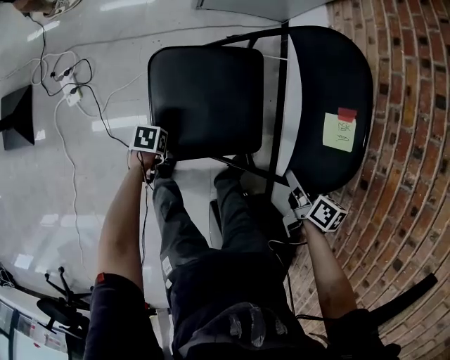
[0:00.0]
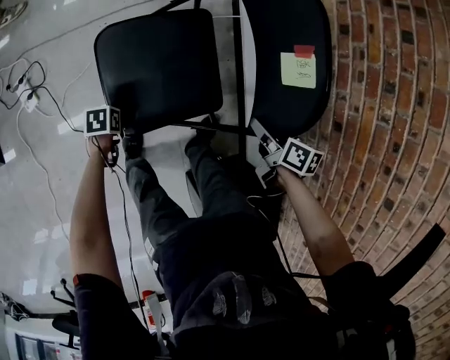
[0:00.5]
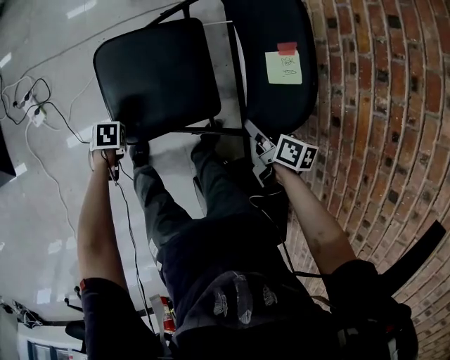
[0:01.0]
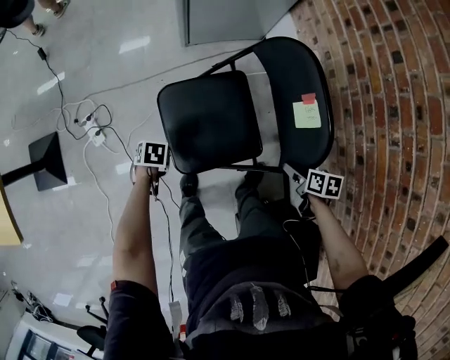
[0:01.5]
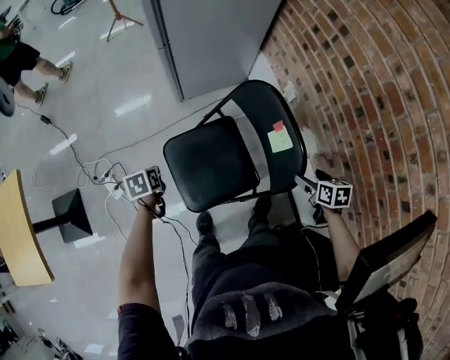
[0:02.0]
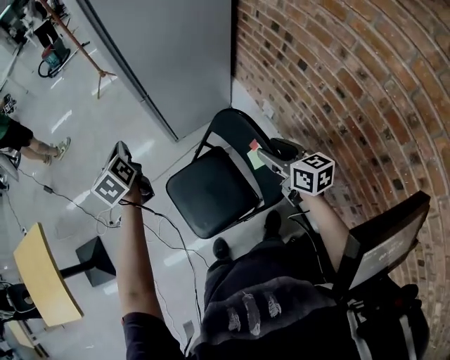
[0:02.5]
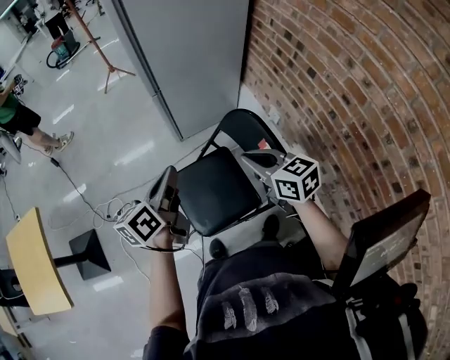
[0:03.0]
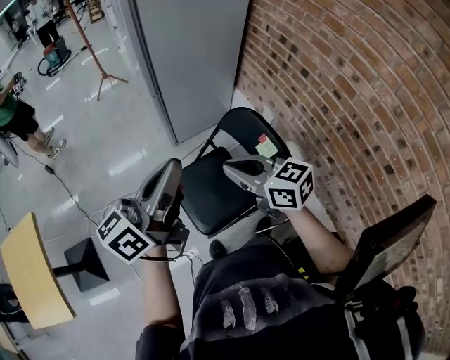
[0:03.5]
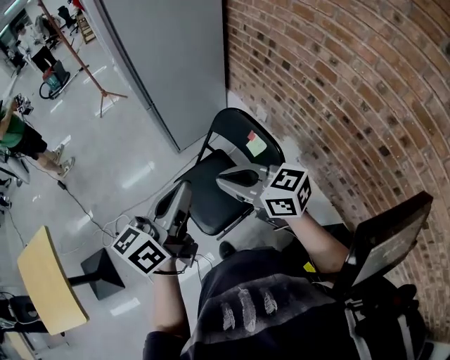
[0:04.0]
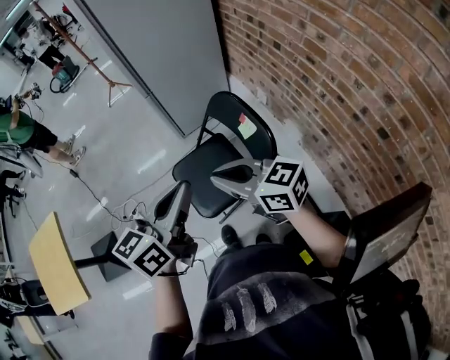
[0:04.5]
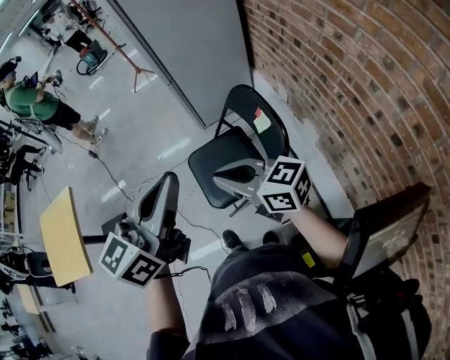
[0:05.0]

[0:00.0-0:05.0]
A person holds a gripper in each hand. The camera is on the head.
0:00.0 to 0:02.5: The right gripper goes about 30 cm upward, changes its angle by roughly 40 degrees, and opens, then closes again; the left gripper goes approximately 60 cm upward, points its fingers roughly 40 degrees further upward, and closes.
0:02.5 to 0:05.0: The right gripper shifts some 30 cm backward, to the left and upward, changes its angle by approximately 40 degrees, and closes its fingers; the left gripper shifts some 50 cm backward and upward, and changes its angle by about 50 degrees.

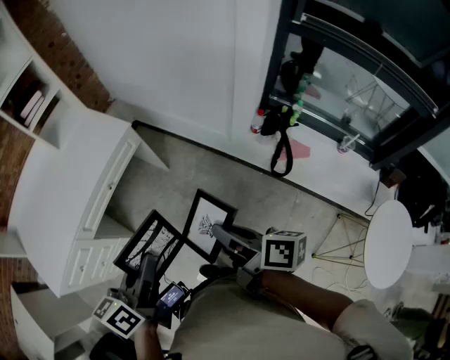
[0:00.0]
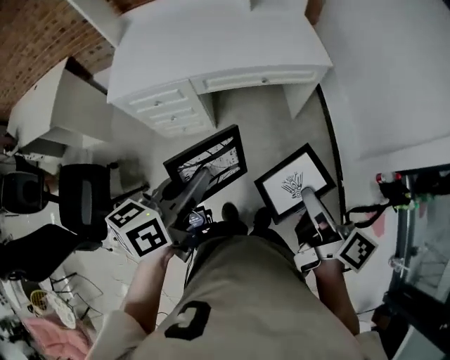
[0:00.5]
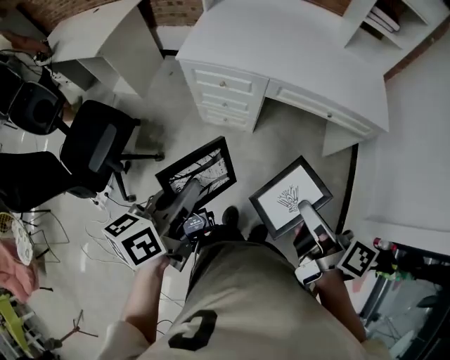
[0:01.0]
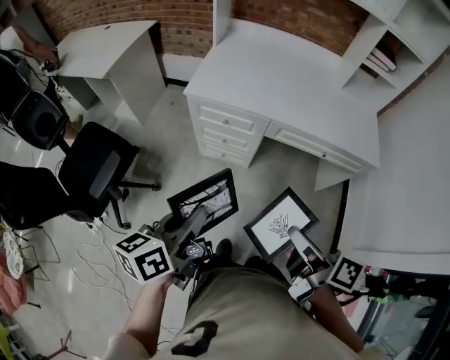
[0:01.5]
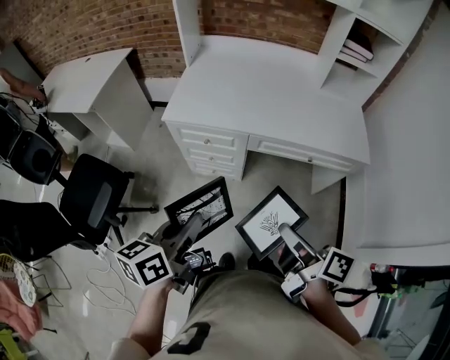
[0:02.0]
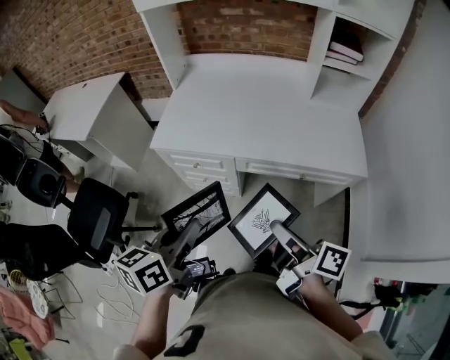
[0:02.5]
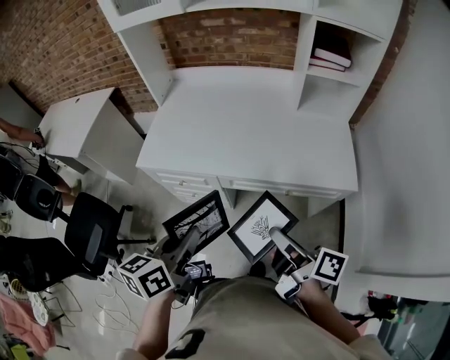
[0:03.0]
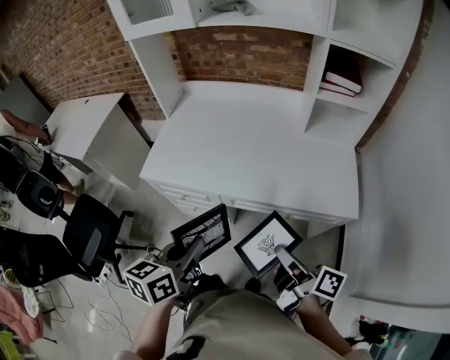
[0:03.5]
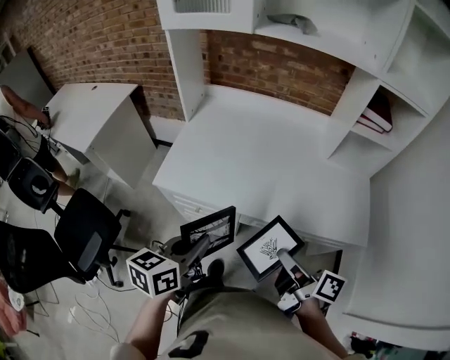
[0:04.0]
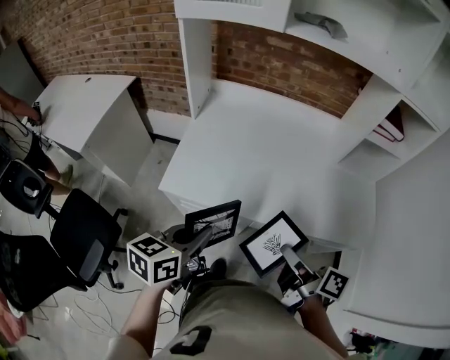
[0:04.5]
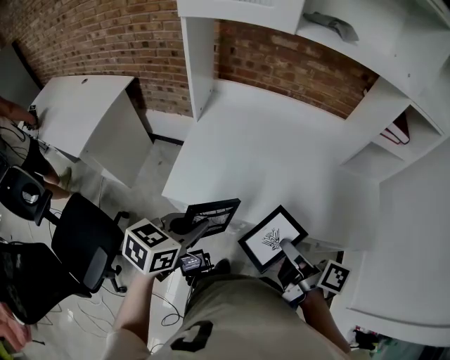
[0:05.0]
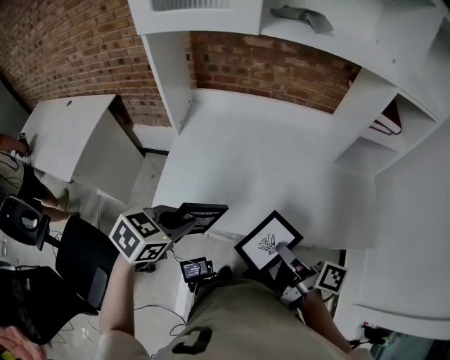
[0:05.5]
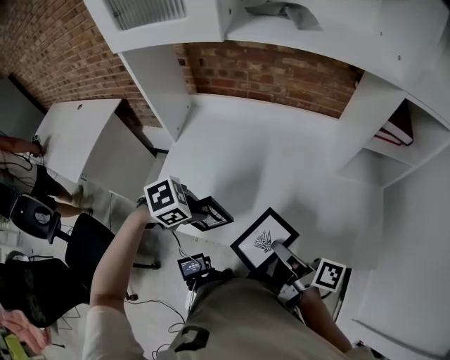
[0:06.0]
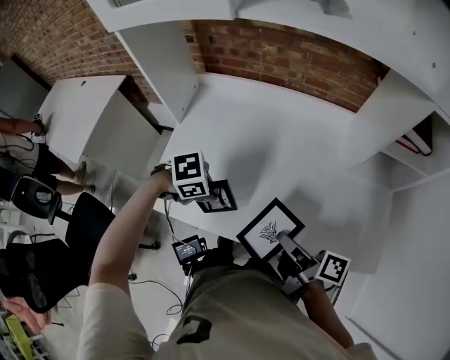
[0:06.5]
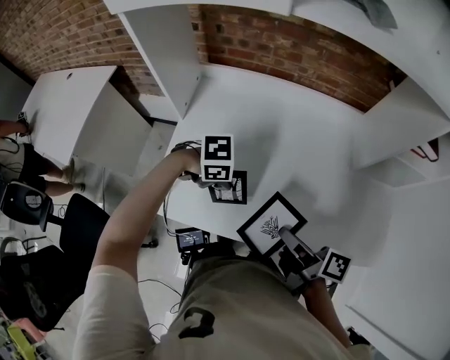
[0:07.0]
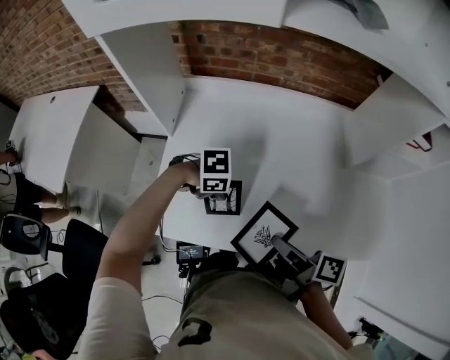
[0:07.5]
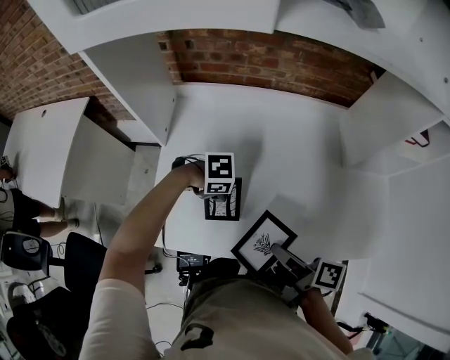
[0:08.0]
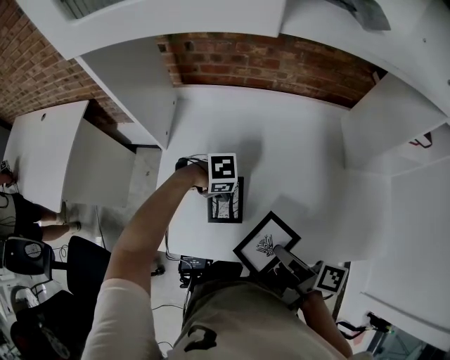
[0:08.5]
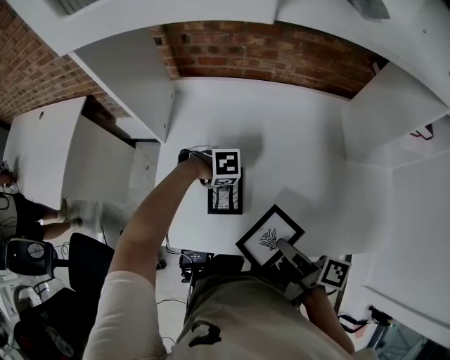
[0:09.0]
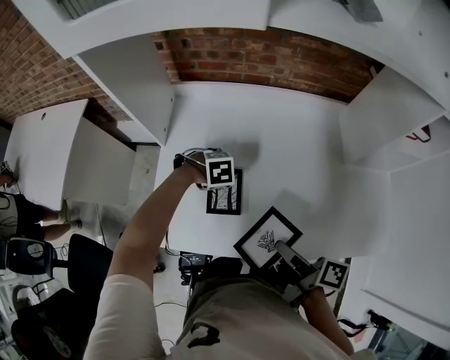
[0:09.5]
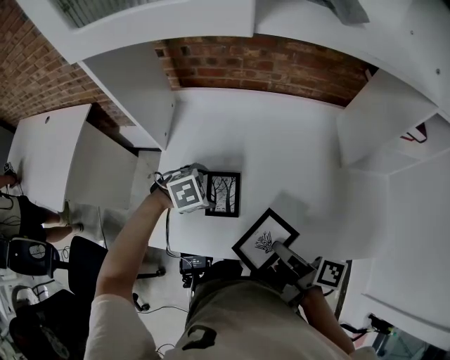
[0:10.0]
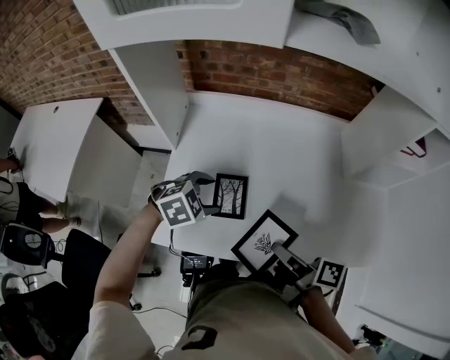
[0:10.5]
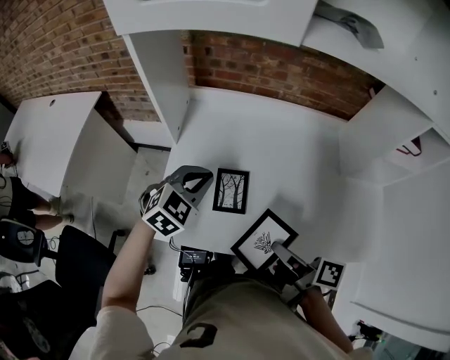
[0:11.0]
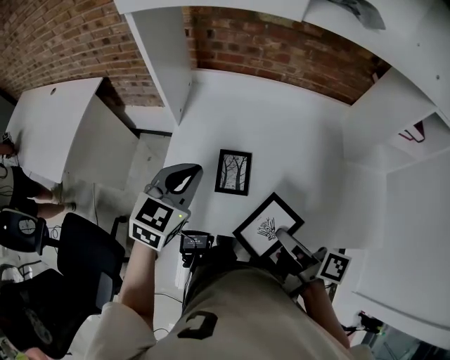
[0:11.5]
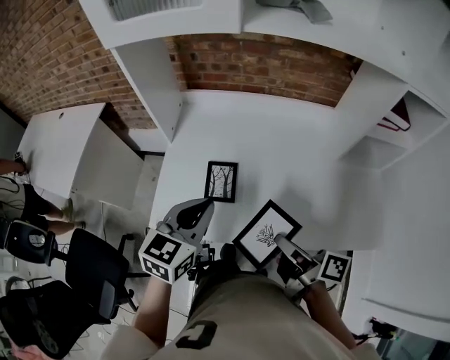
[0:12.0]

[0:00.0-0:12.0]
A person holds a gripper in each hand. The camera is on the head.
0:00.0 to 0:02.0: The left gripper shifts by some 30 cm, and changes its angle by approximately 40 degrees. The right gripper moves some 35 cm, and swivels approximately 40 degrees.
0:02.0 to 0:04.0: Both grippers move forward, roughly 25 cm.
0:04.0 to 0:06.0: The right gripper changes place by approximately 20 cm, while the left gripper changes place by roughly 25 cm, and tilts its fingers approximately 40 degrees downward.
0:06.0 to 0:08.0: The right gripper ends up roughly 10 cm from where it was; the left gripper changes place by approximately 20 cm, swivels about 30 degrees, and opens up.
0:08.0 to 0:10.0: The left gripper rotates some 30 degrees, and opens its fingers.
0:10.0 to 0:12.0: The right gripper shifts by roughly 5 cm. The left gripper heads upward, covering approximately 20 cm, tips its fingers upward by some 50 degrees, and closes up.

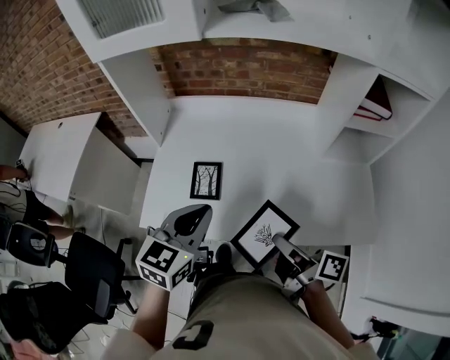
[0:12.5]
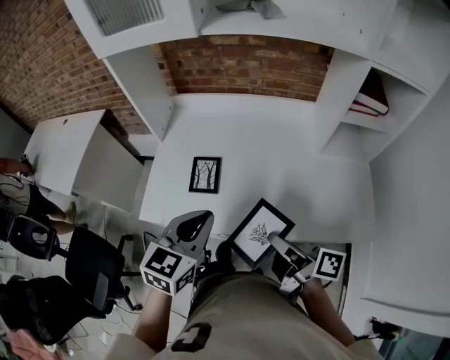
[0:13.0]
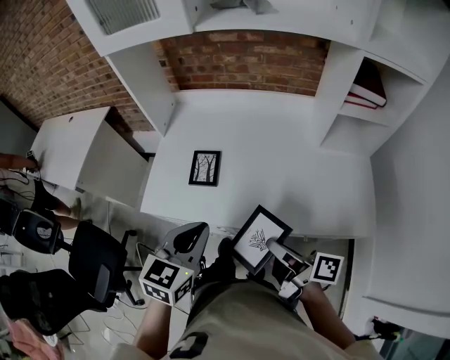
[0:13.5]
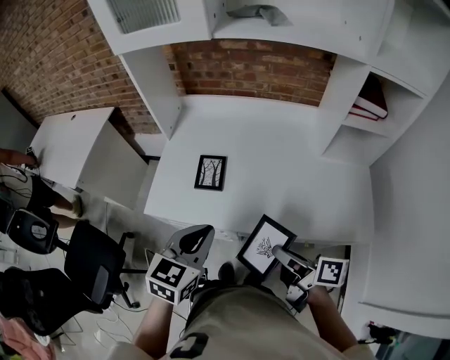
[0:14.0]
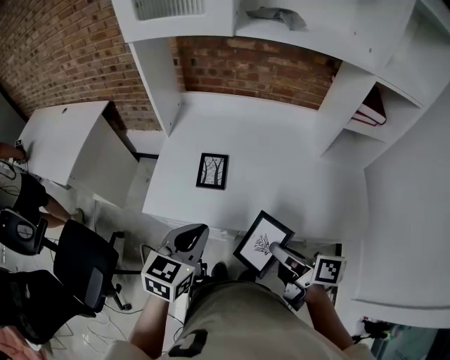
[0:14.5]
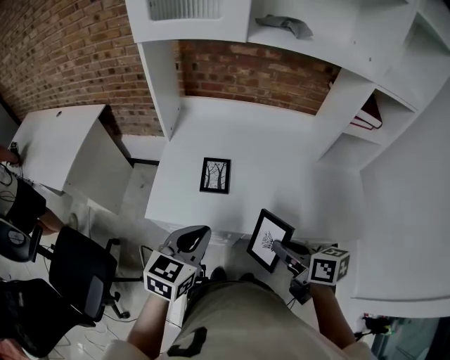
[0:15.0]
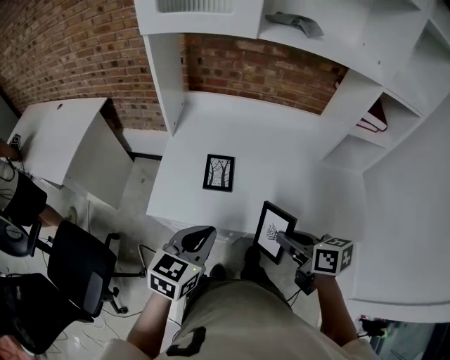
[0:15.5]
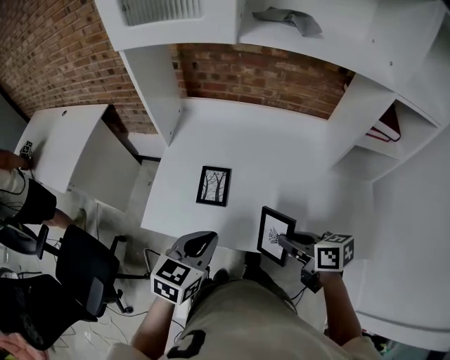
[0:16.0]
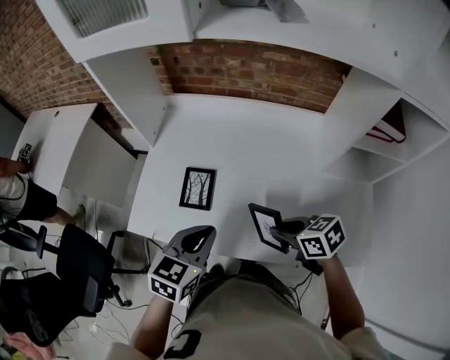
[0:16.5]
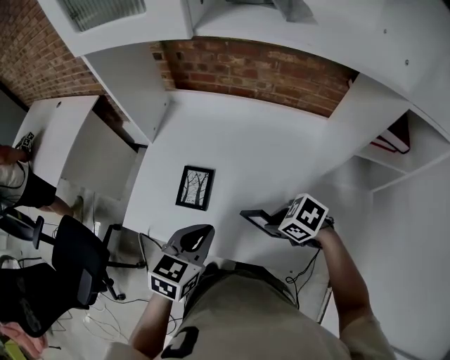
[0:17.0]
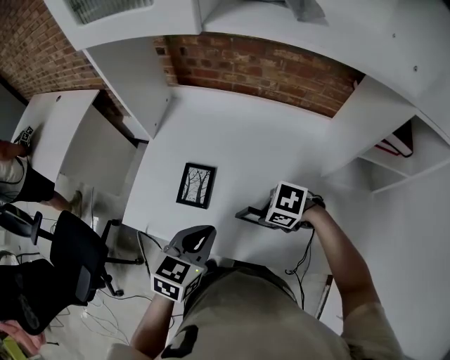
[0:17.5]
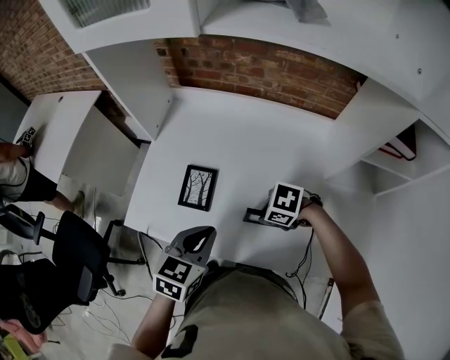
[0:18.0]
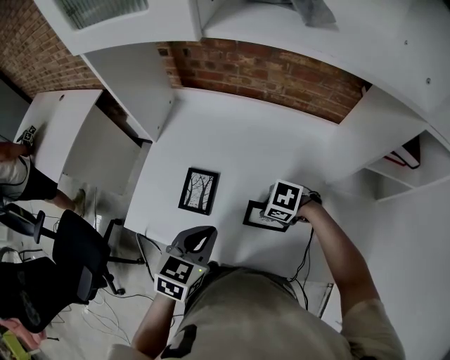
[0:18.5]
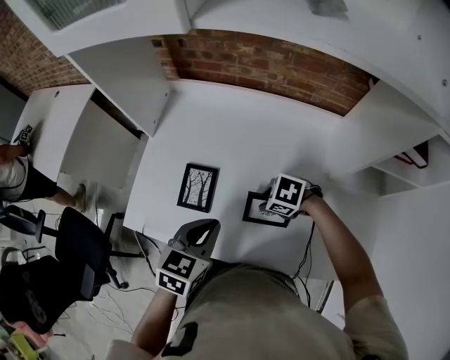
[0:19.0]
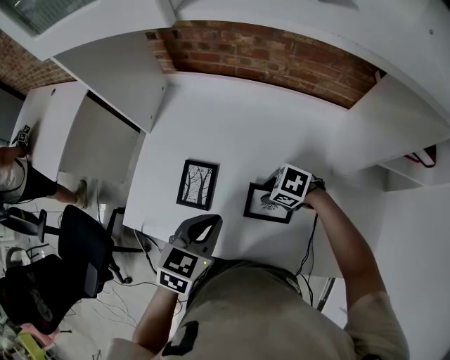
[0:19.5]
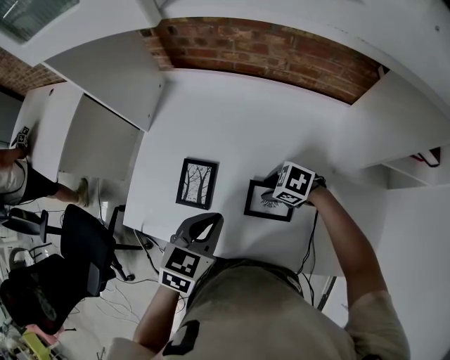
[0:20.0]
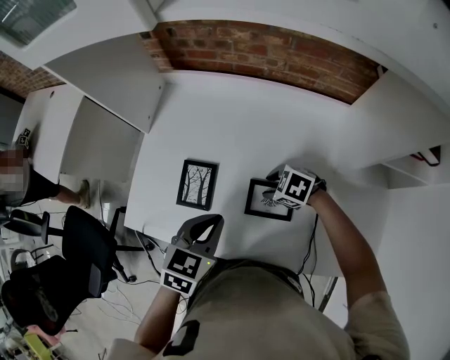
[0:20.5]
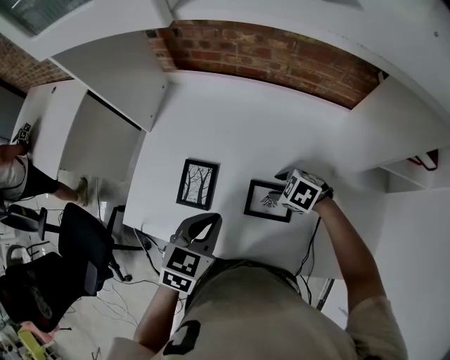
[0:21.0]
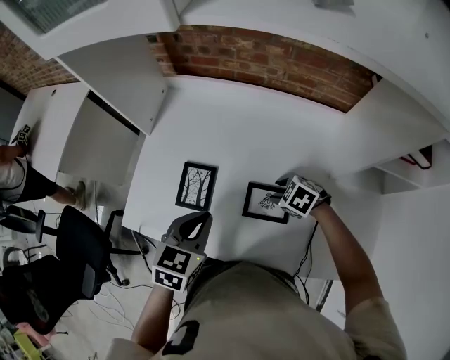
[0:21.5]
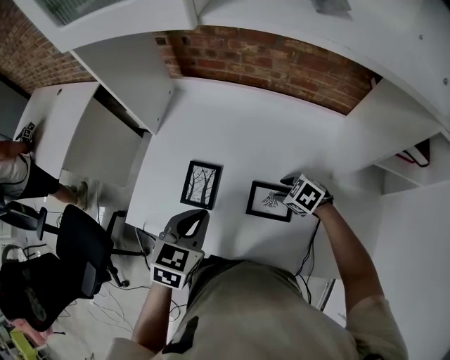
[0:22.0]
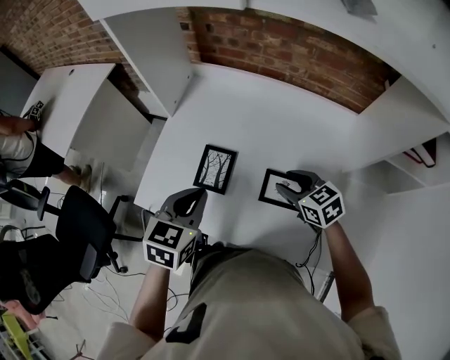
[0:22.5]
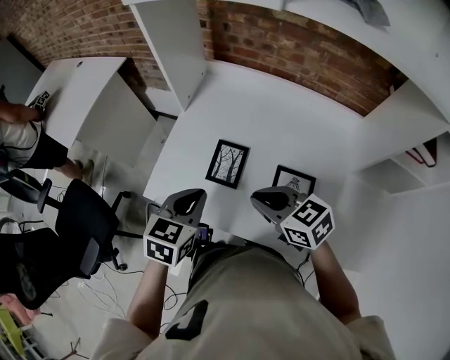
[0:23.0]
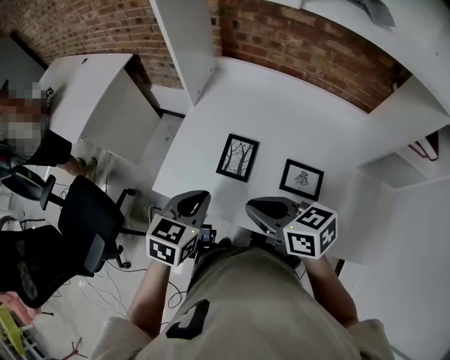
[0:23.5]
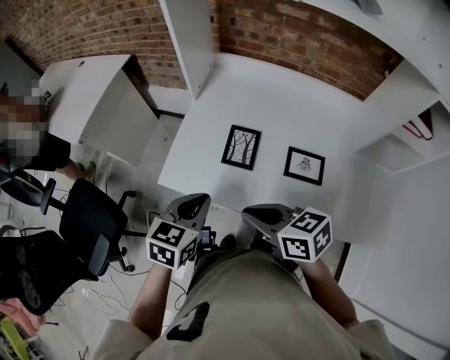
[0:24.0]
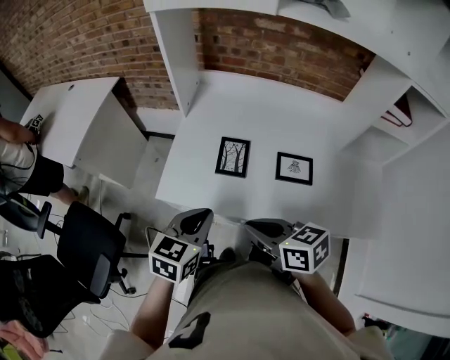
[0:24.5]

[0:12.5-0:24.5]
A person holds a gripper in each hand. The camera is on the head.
0:12.5 to 0:14.5: The right gripper heads backward, covering some 5 cm; the left gripper goes some 10 cm backward and to the left.
0:14.5 to 0:16.5: The right gripper moves forward, to the right and downward, about 20 cm, and rotates roughly 50 degrees. The left gripper heads to the right and forward, covering roughly 15 cm.
0:16.5 to 0:18.5: The right gripper is displaced downward by approximately 10 cm, and rotates about 50 degrees.
0:18.5 to 0:20.5: The left gripper ends up roughly 5 cm from where it was. Meanwhile the right gripper moves approximately 10 cm, and opens its fingers.
0:20.5 to 0:22.5: The left gripper shifts by some 10 cm, while the right gripper heads upward, covering approximately 10 cm, and swivels about 40 degrees.
0:22.5 to 0:24.5: The left gripper travels to the left and backward by roughly 15 cm. The right gripper moves to the left and backward, approximately 30 cm, swivels roughly 30 degrees, and closes up.
